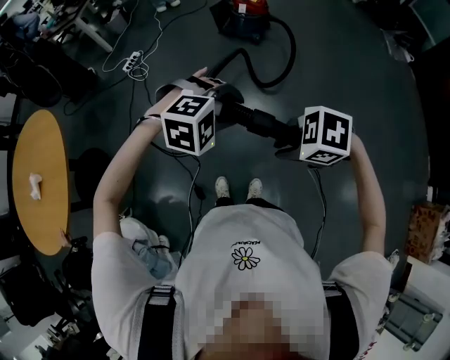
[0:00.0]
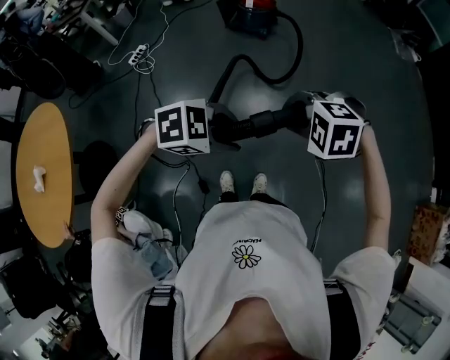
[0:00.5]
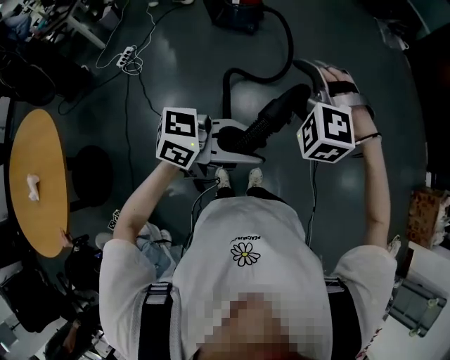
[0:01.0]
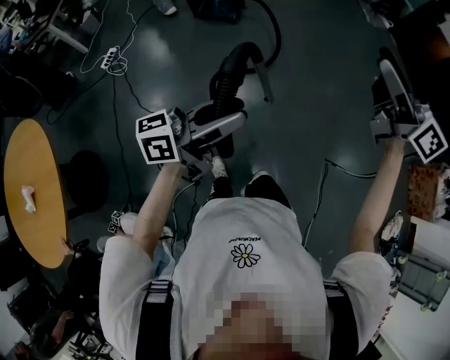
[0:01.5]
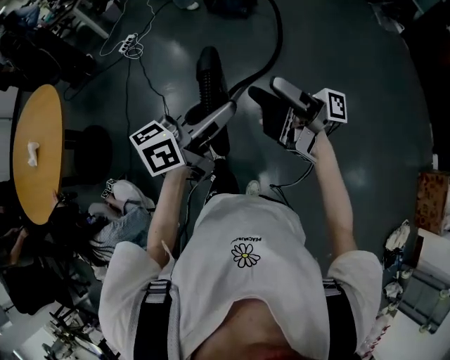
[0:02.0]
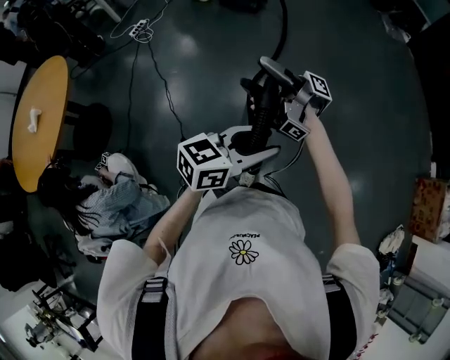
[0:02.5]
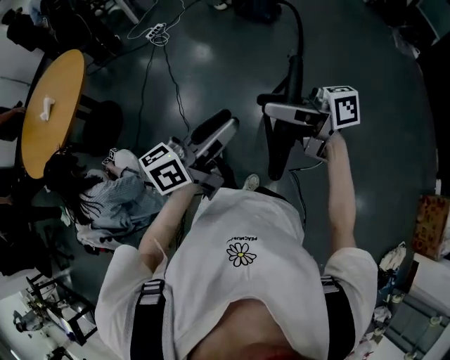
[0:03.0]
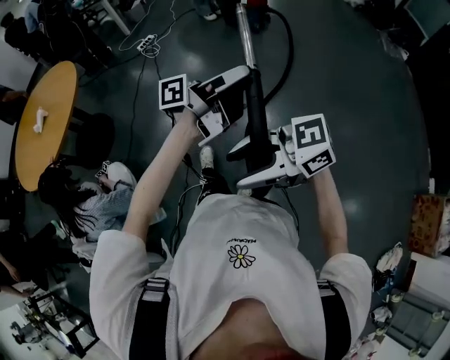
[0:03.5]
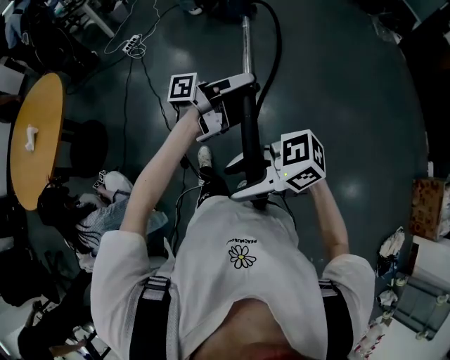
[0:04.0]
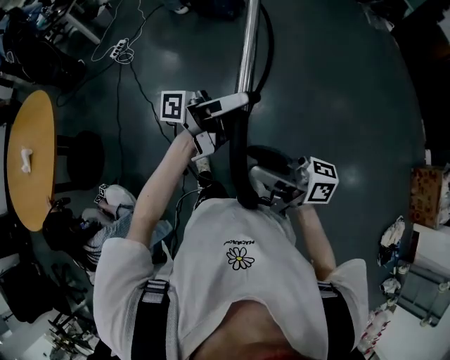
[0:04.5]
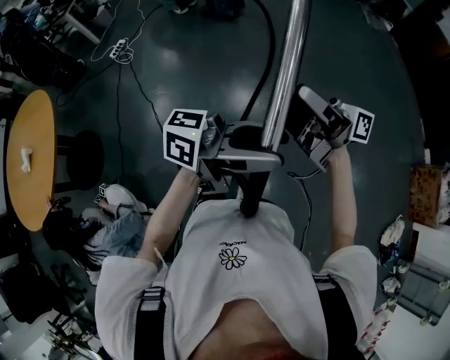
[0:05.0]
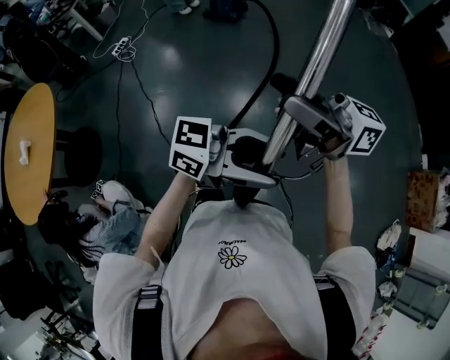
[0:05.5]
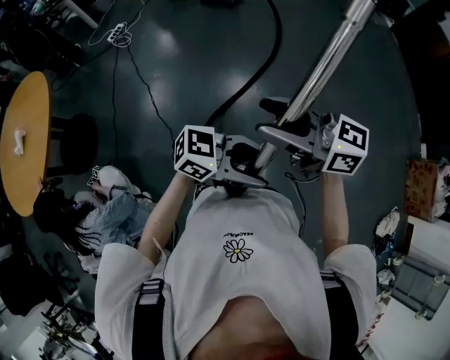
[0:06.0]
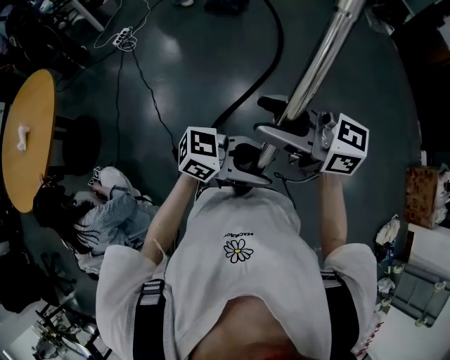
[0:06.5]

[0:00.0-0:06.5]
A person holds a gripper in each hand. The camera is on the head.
0:00.0 to 0:02.0: The left gripper shifts by some 25 cm, and tilts its fingers about 60 degrees upward. Meanwhile the right gripper angles its fingers upward, by about 90 degrees, and opens up.
0:02.0 to 0:04.5: The right gripper moves up and down over some 5 cm, changing direction 2 times, swivels some 30 degrees, and closes up. The left gripper goes up and down, roughly 10 cm each way, reversing 3 times, and turns by some 50 degrees.
0:04.5 to 0:06.5: The right gripper is displaced upward by roughly 5 cm, and swivels about 30 degrees. Meanwhile the left gripper changes place by approximately 25 cm, and points its fingers approximately 30 degrees further downward.

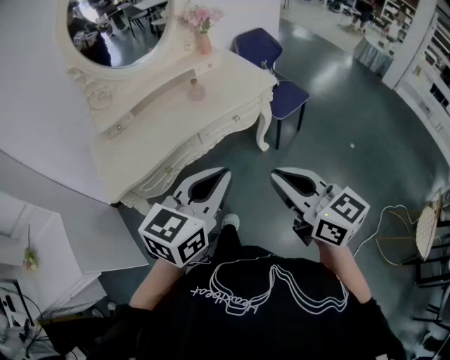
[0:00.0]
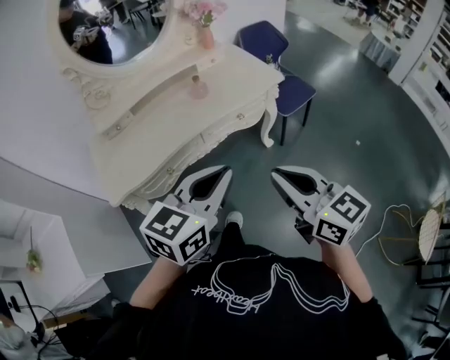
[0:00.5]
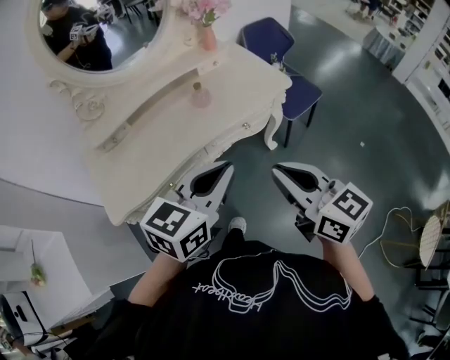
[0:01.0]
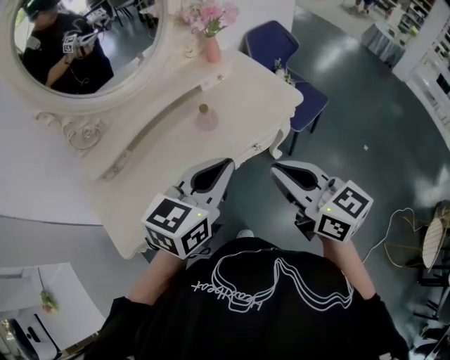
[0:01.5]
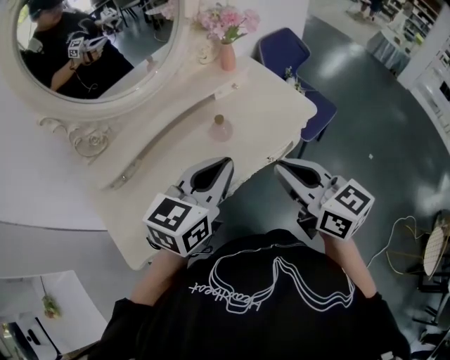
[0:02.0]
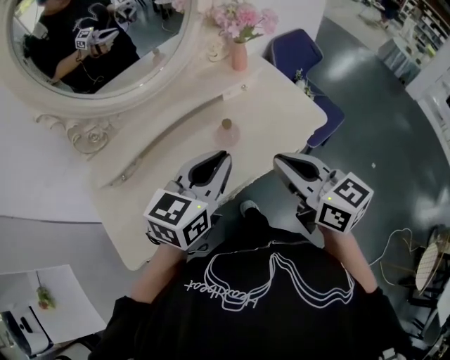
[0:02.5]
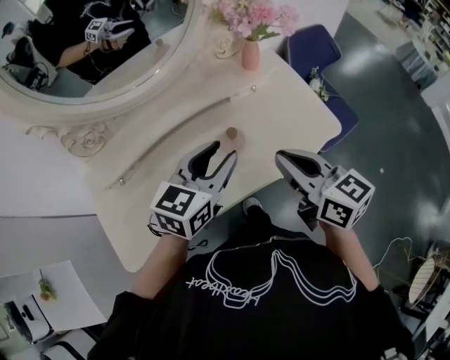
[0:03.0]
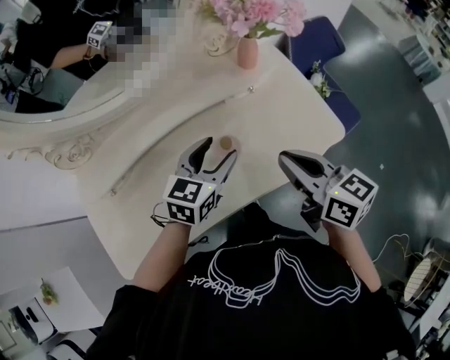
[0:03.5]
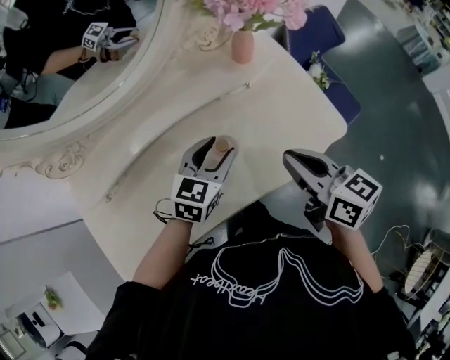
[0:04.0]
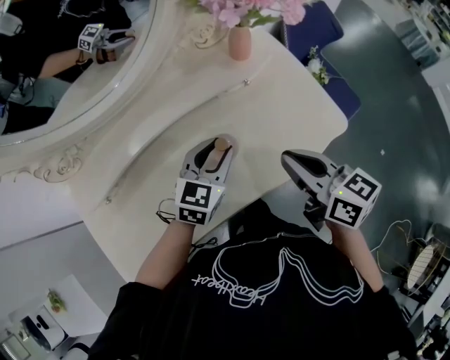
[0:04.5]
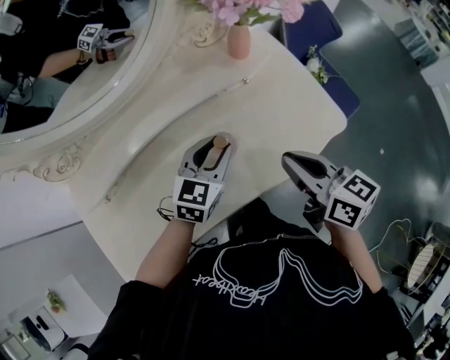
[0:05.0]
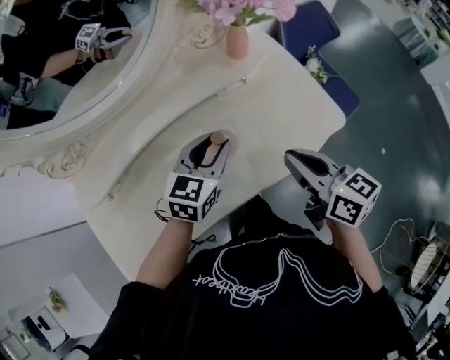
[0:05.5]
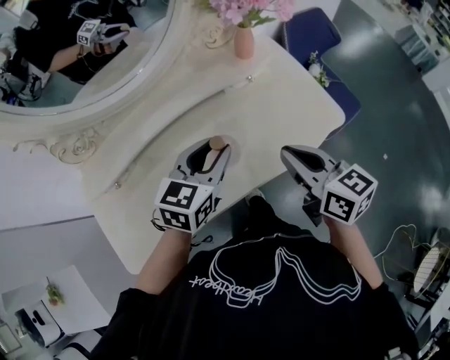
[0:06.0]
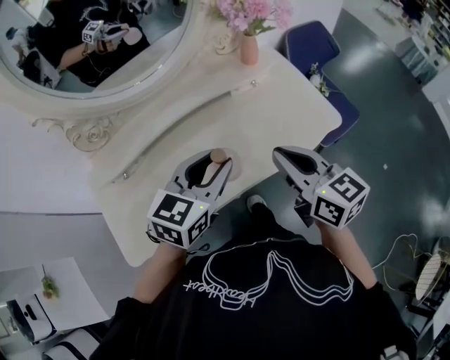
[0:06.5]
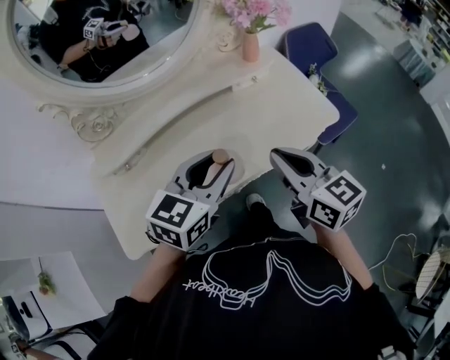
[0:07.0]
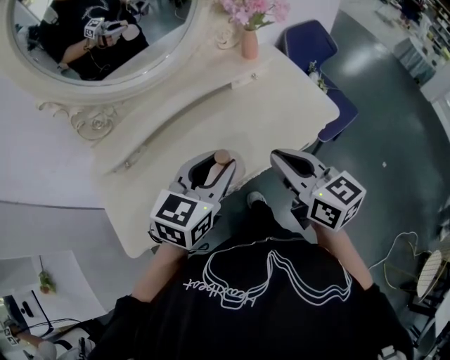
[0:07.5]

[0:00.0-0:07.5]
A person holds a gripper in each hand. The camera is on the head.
0:00.0 to 0:02.0: The two grippers go about 35 cm forward.
0:02.0 to 0:04.0: The grippers both shift forward and downward by about 25 cm. The left gripper opens up.
0:04.0 to 0:05.5: The grippers stay close to where they were, moving slightly.
0:05.5 to 0:07.5: The left gripper heads backward and upward, covering about 20 cm. The right gripper moves backward, to the left and upward, some 15 cm.

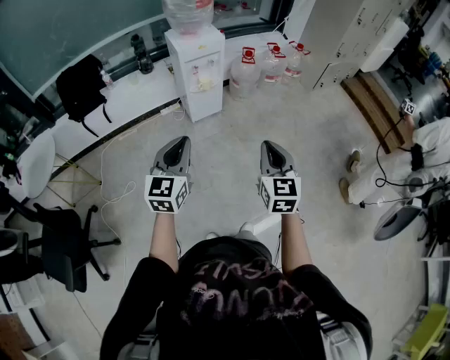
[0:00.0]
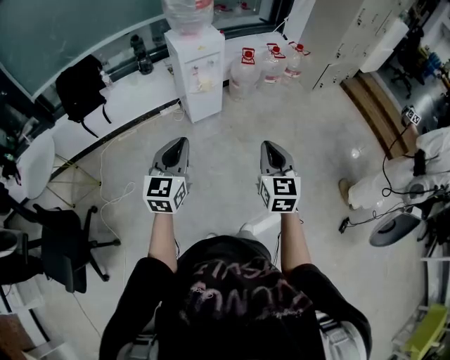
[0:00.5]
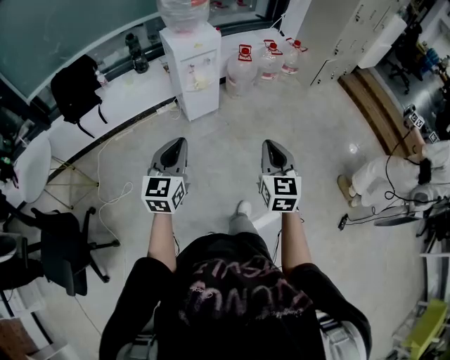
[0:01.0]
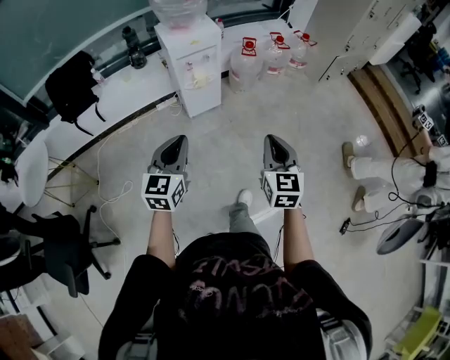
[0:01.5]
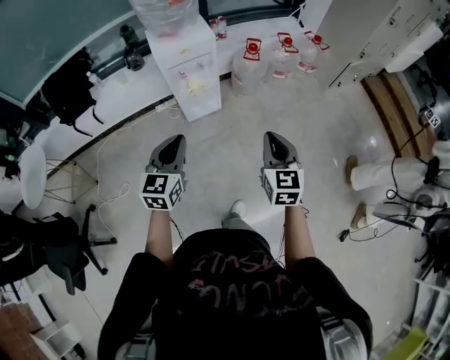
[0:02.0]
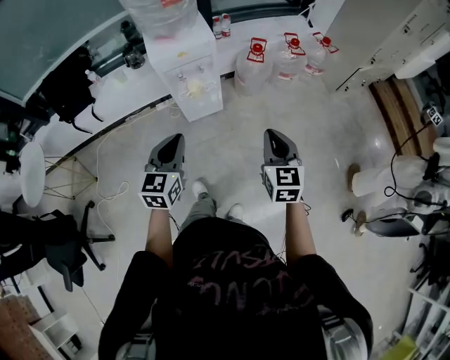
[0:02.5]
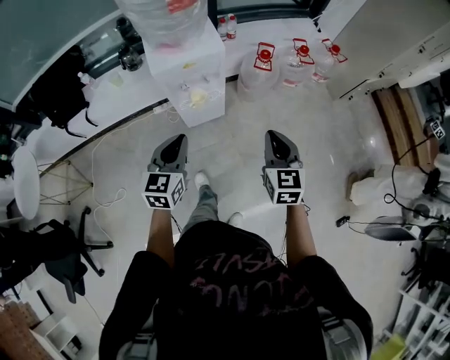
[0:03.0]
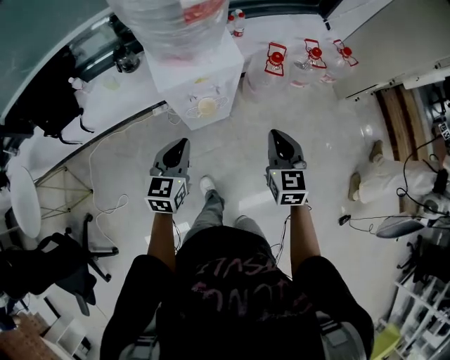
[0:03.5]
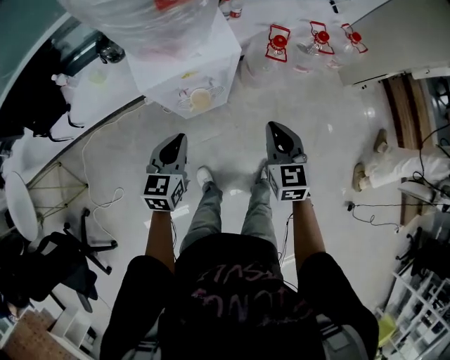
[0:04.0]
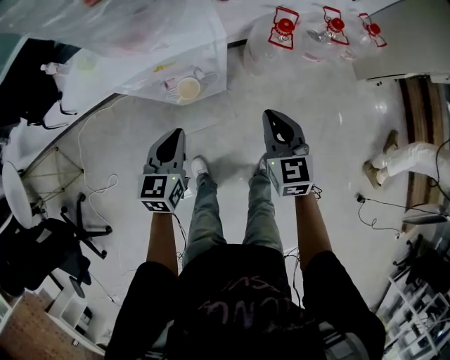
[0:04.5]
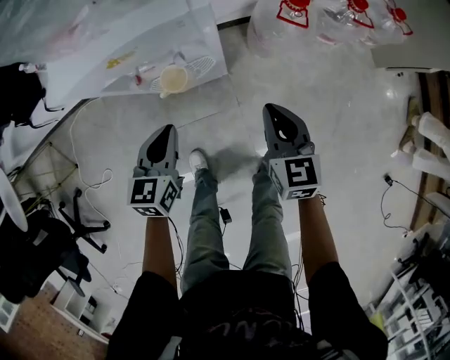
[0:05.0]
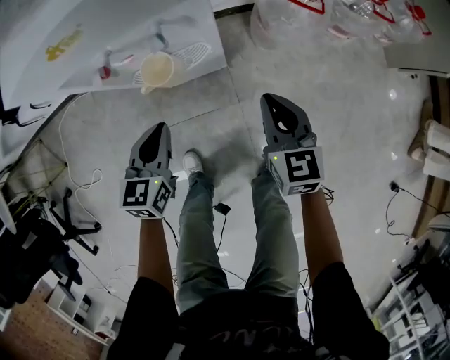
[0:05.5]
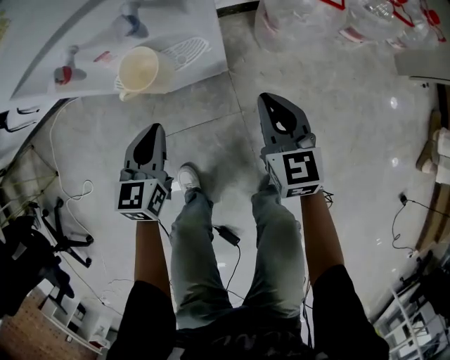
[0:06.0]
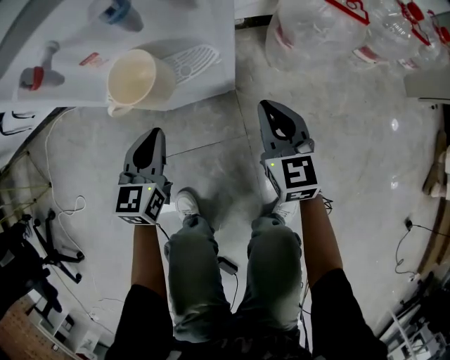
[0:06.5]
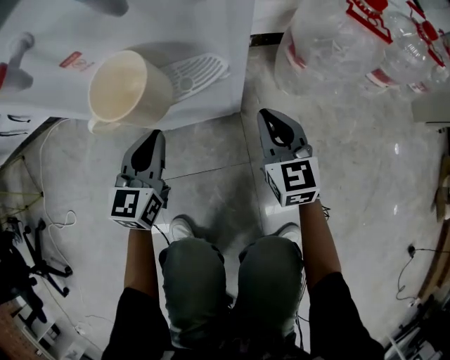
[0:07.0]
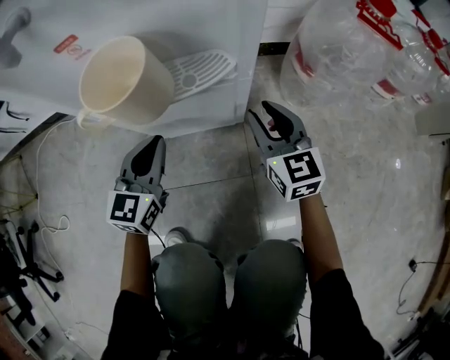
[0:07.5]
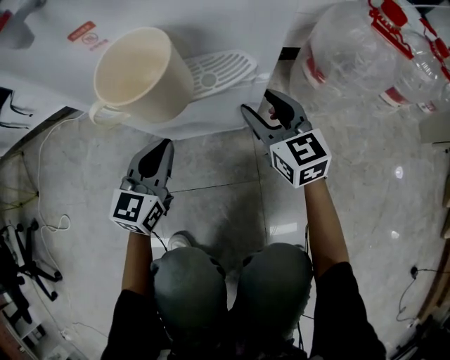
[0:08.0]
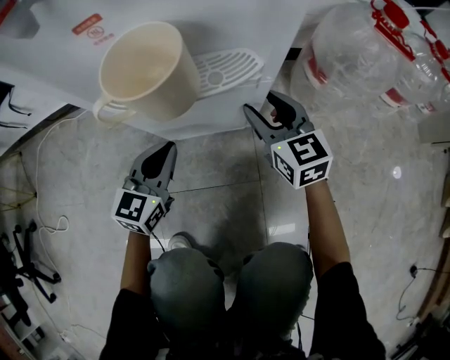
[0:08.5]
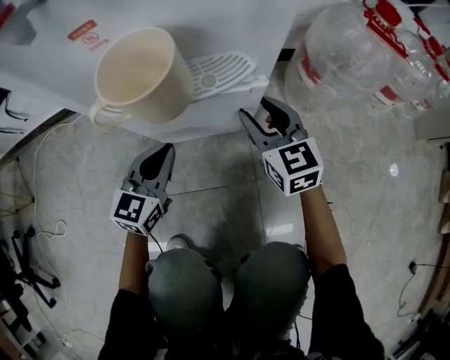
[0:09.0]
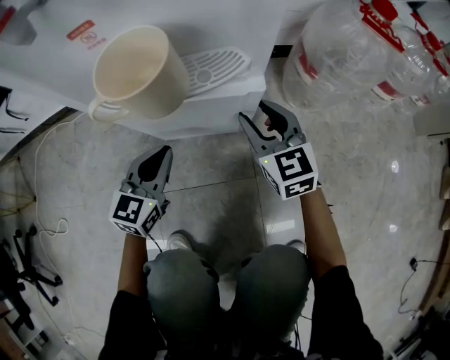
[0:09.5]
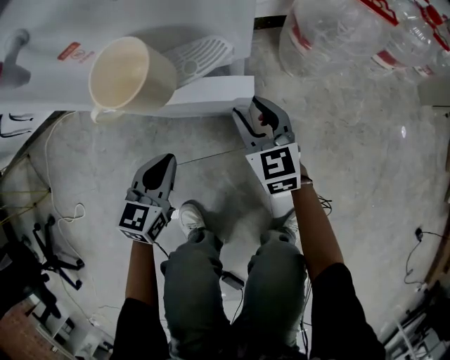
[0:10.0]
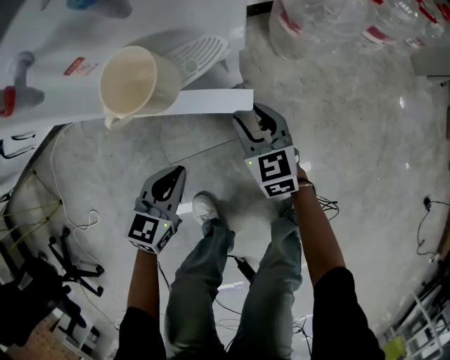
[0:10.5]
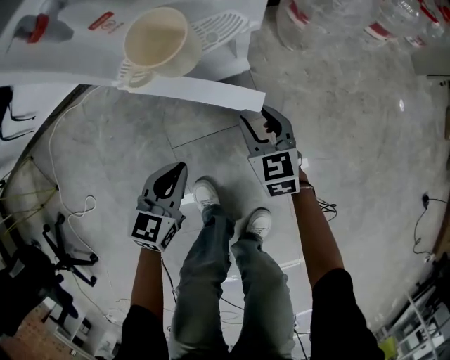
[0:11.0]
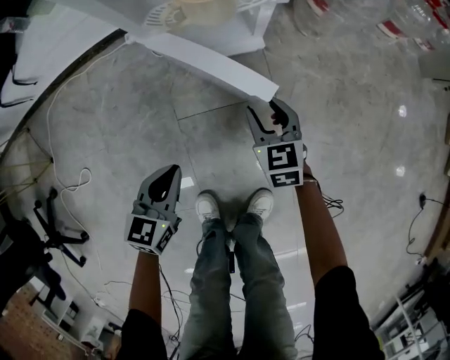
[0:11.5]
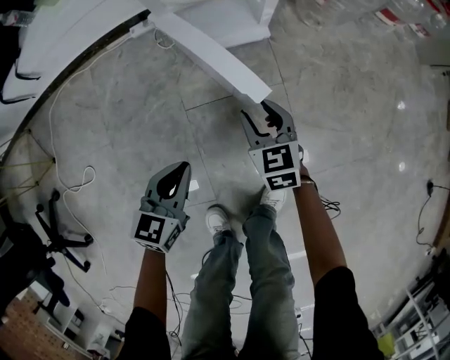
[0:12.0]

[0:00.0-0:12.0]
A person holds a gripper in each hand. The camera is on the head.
0:00.0 to 0:02.0: Both grippers travel together forward, about 30 cm.
0:02.0 to 0:04.0: Both grippers move forward and downward, approximately 40 cm.
0:04.0 to 0:06.0: The two grippers go roughly 40 cm downward.
0:06.0 to 0:08.0: The left gripper travels downward and forward by about 20 cm. Meanwhile the right gripper is displaced downward, forward and to the left by roughly 25 cm, turns by approximately 20 degrees, and opens its fingers.
0:08.0 to 0:10.0: Both grippers move backward, about 10 cm.
0:10.0 to 0:12.0: The right gripper moves backward and to the left, roughly 25 cm; the left gripper heads backward, covering some 25 cm.

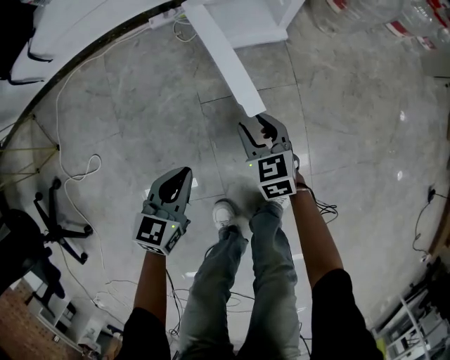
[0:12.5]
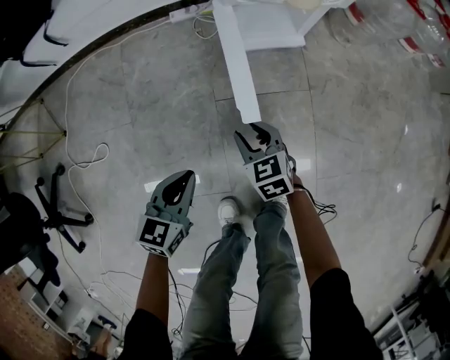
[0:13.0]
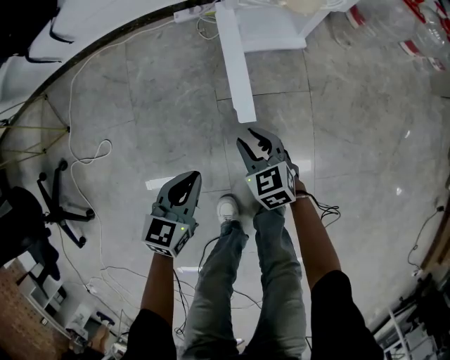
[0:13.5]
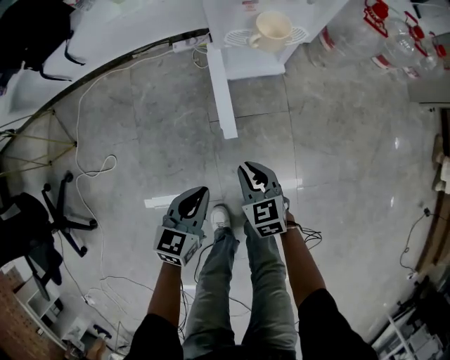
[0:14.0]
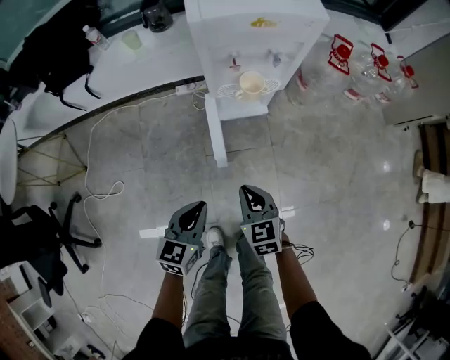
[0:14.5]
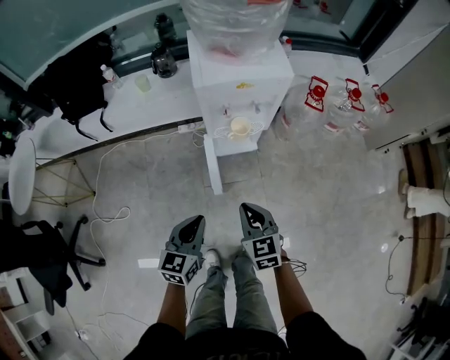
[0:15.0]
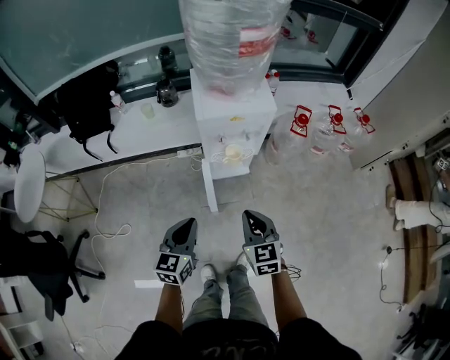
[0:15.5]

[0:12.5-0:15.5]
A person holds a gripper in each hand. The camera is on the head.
0:12.5 to 0:14.0: The right gripper travels upward and backward by about 15 cm, and closes up. The left gripper is displaced upward by about 15 cm.
0:14.0 to 0:15.5: Both grippers move upward, roughly 40 cm.
